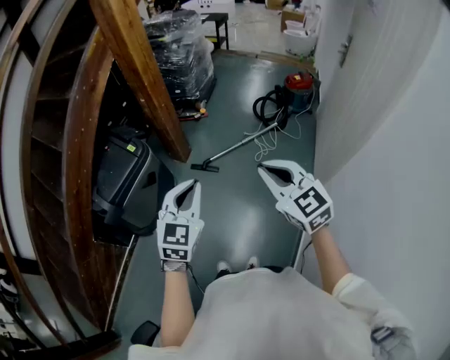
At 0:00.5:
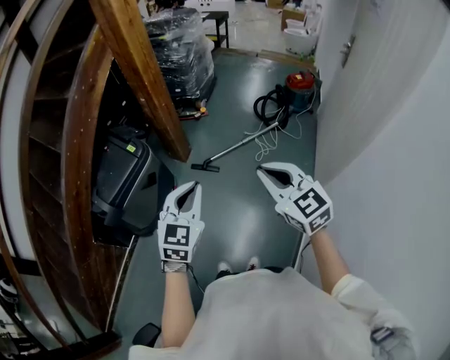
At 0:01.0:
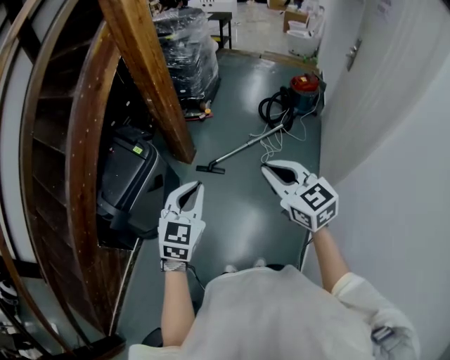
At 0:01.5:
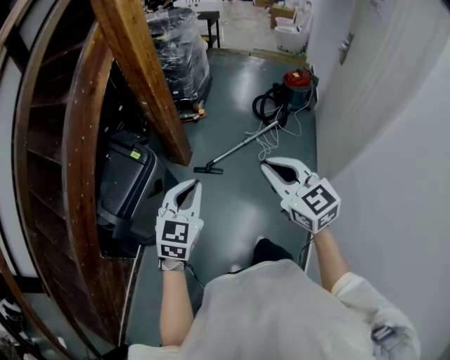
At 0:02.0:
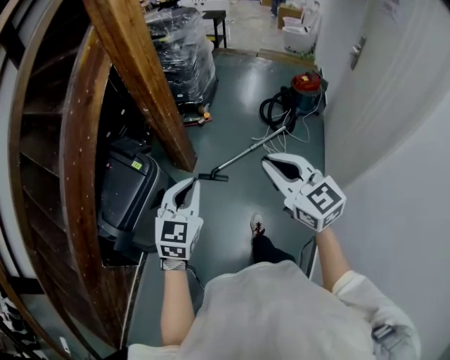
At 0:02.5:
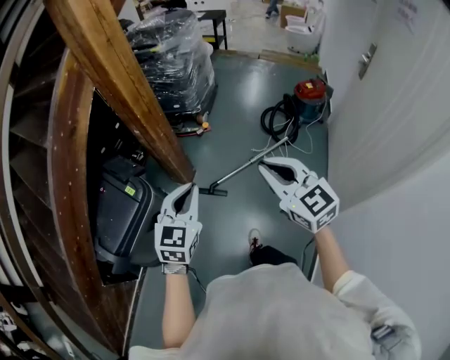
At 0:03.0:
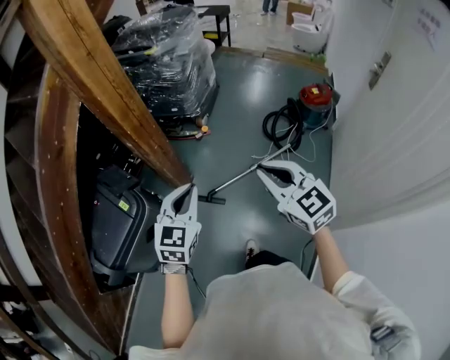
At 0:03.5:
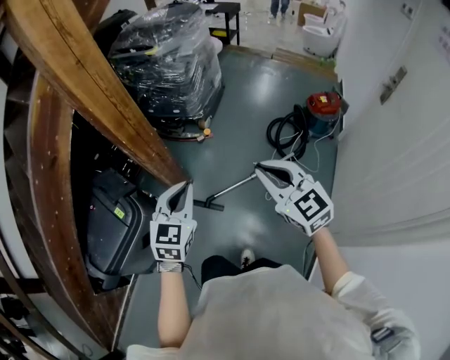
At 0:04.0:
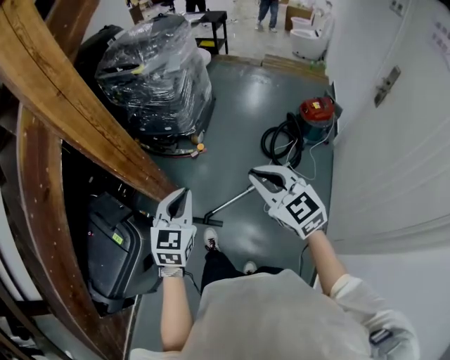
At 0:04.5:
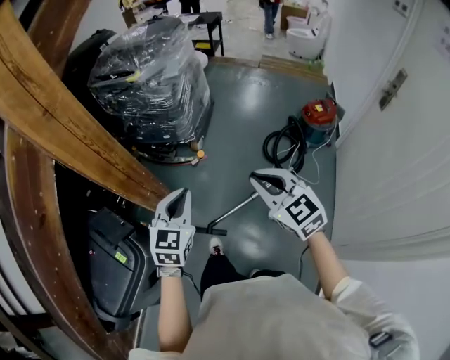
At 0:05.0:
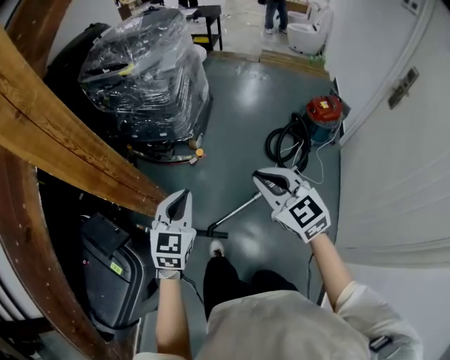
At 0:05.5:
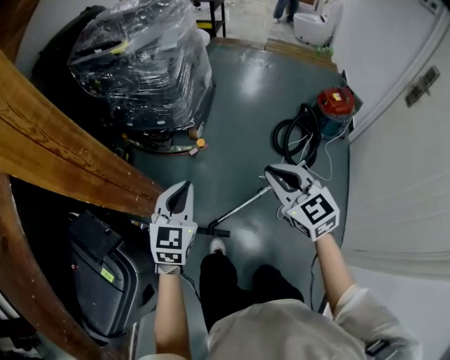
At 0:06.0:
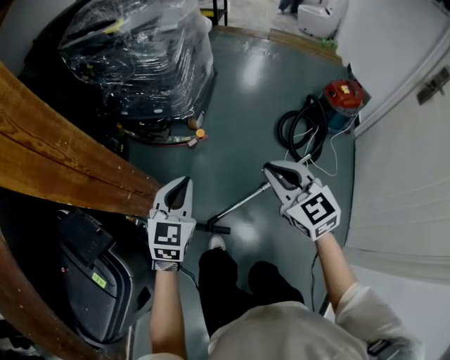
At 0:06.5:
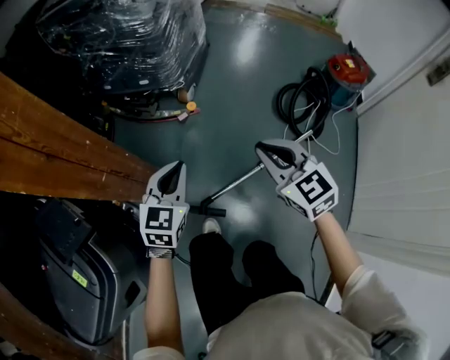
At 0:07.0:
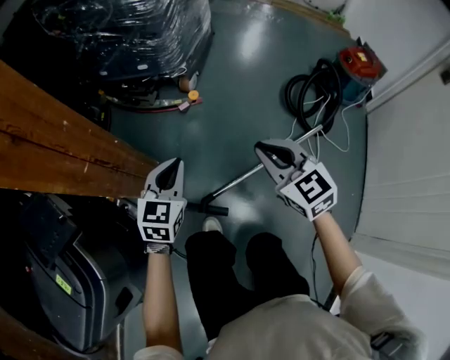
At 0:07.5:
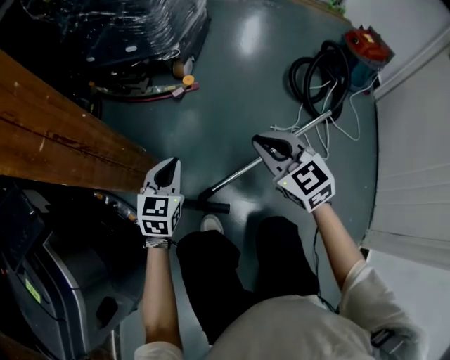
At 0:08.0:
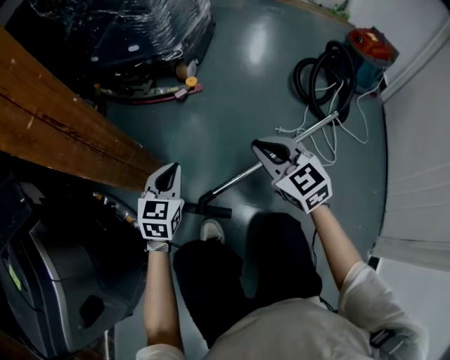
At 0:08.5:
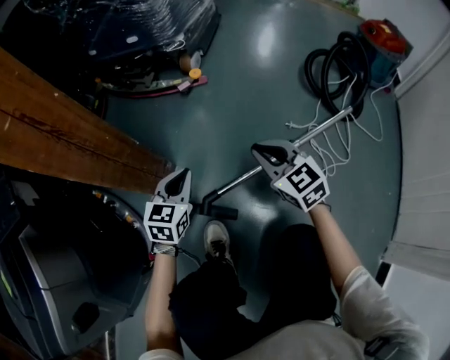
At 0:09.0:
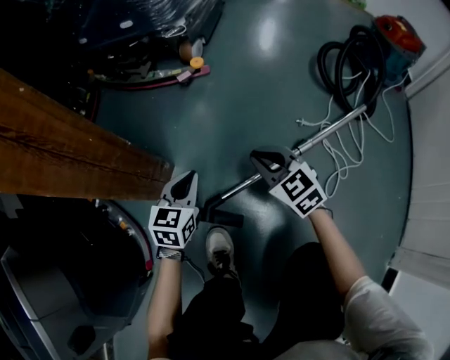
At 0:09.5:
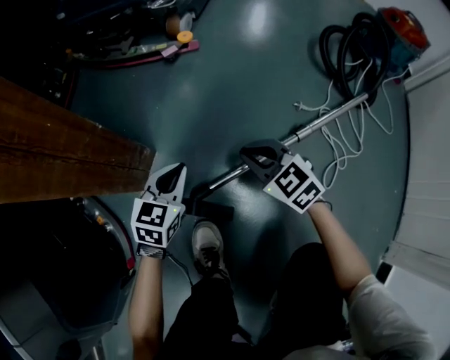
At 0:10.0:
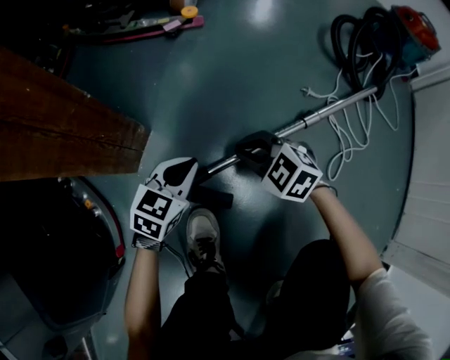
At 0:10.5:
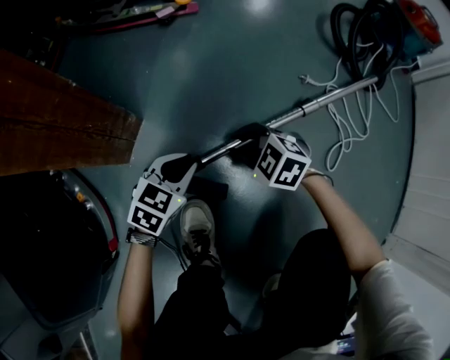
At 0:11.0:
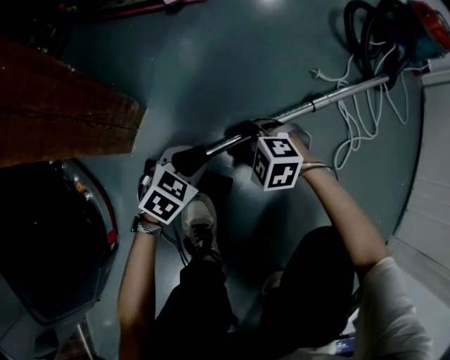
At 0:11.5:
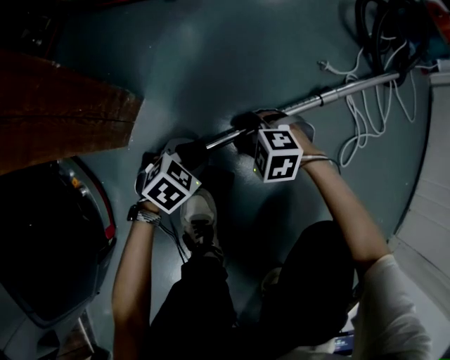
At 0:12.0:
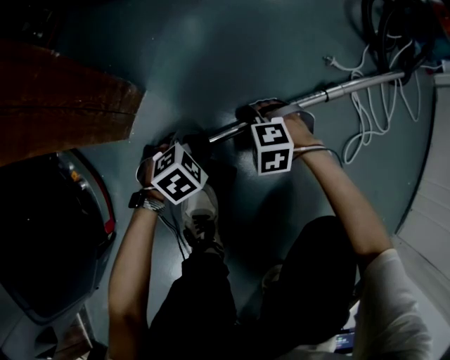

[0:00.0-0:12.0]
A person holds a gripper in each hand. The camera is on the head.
0:00.0 to 0:02.0: Both grippers move forward and to the left, about 15 cm.
0:02.0 to 0:04.0: The two grippers travel together, forward and to the right, about 40 cm.
0:04.0 to 0:06.0: Both grippers move downward and forward, approximately 30 cm.
0:06.0 to 0:08.0: Both grippers travel together downward, some 40 cm.
0:08.0 to 0:10.0: Both grippers travel together downward, roughly 25 cm. The left gripper swivels some 20 degrees, while the right gripper swivels some 40 degrees.
0:10.0 to 0:12.0: Both grippers move downward, roughly 15 cm. The left gripper turns by about 40 degrees, and opens its fingers, while the right gripper rotates approximately 40 degrees, and opens up.

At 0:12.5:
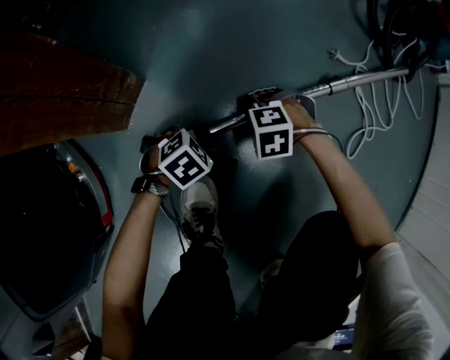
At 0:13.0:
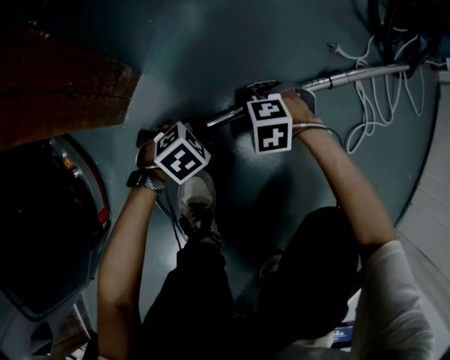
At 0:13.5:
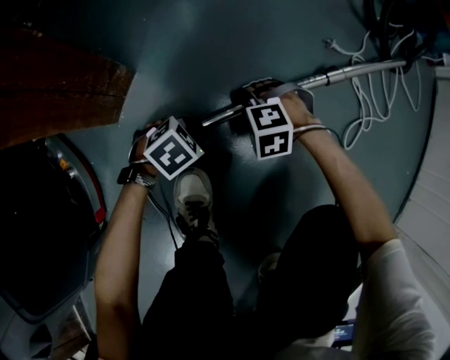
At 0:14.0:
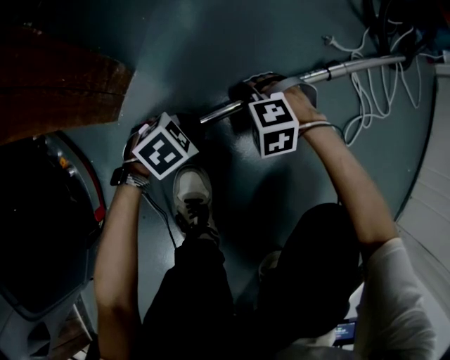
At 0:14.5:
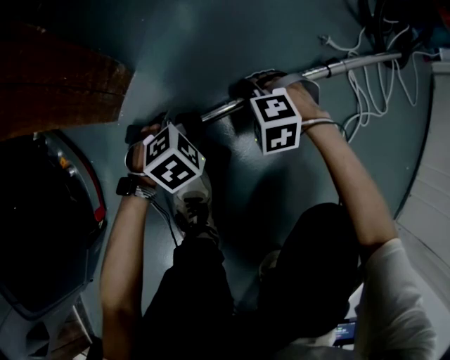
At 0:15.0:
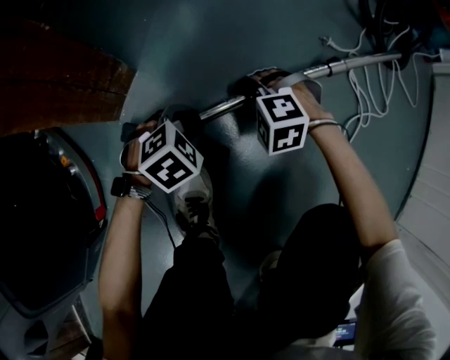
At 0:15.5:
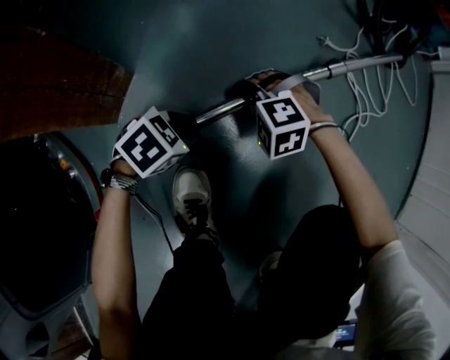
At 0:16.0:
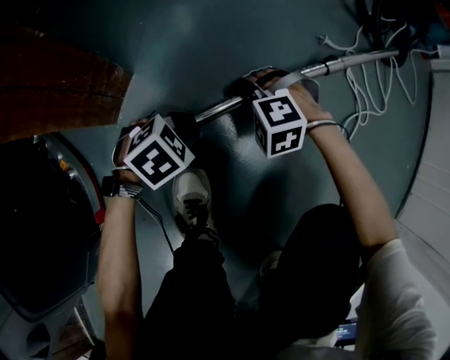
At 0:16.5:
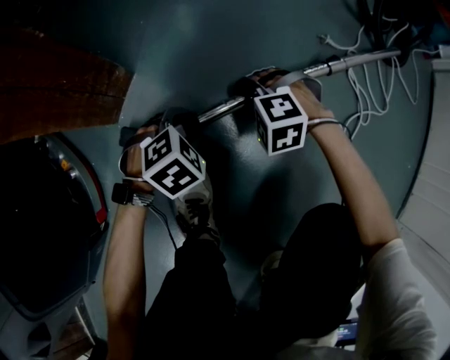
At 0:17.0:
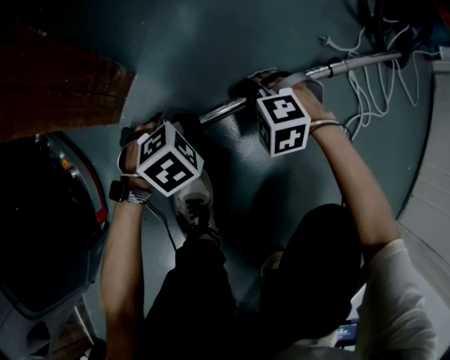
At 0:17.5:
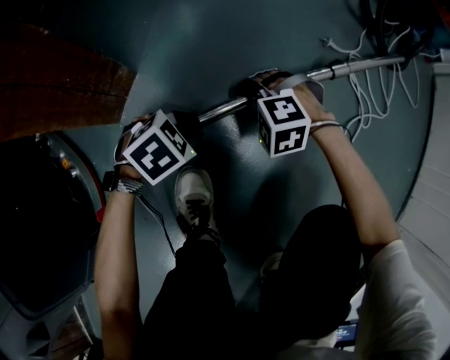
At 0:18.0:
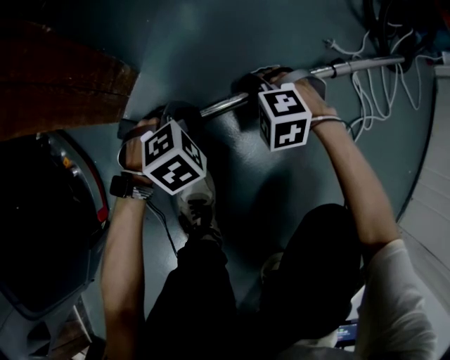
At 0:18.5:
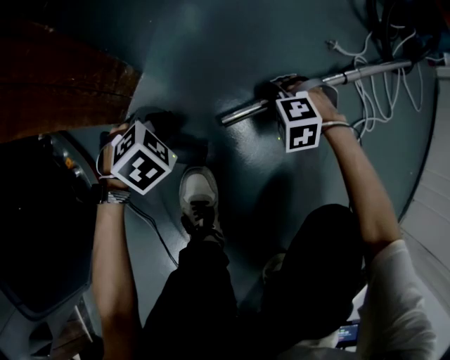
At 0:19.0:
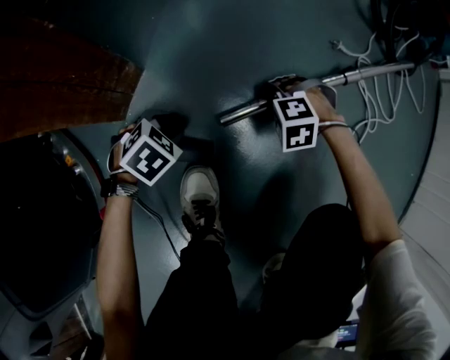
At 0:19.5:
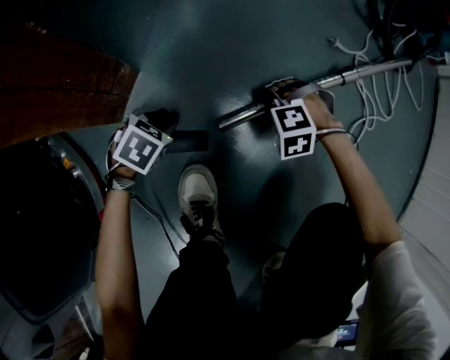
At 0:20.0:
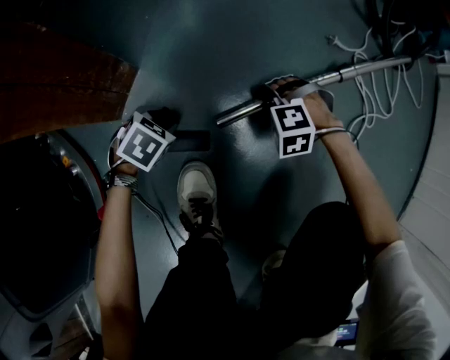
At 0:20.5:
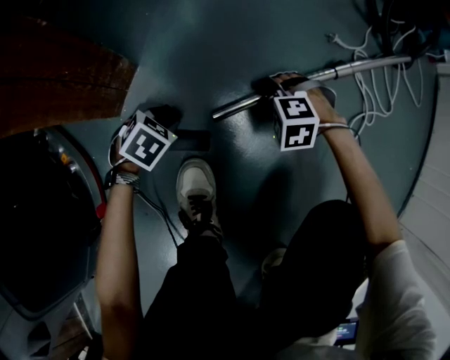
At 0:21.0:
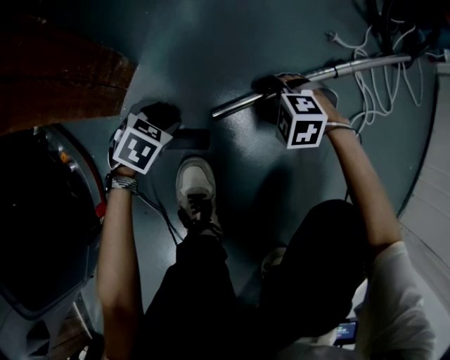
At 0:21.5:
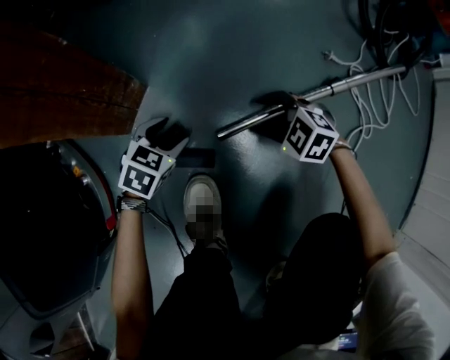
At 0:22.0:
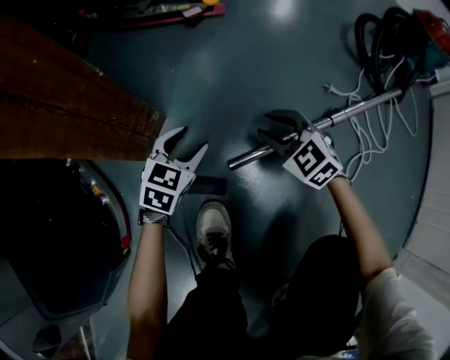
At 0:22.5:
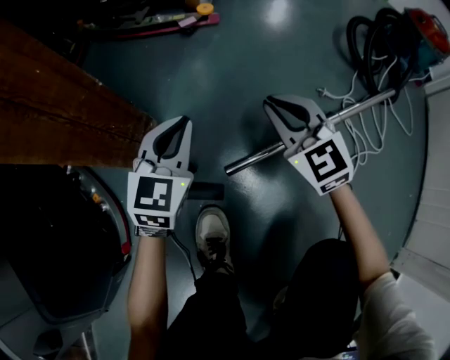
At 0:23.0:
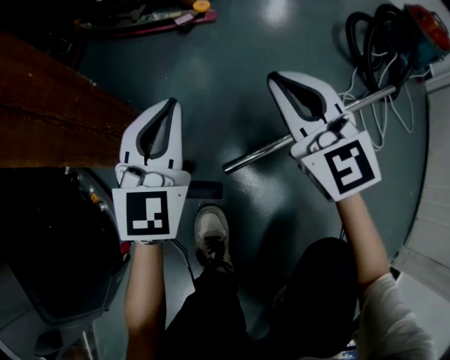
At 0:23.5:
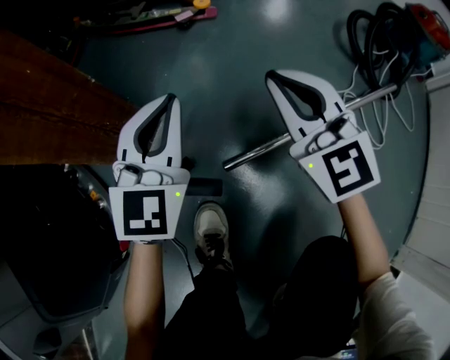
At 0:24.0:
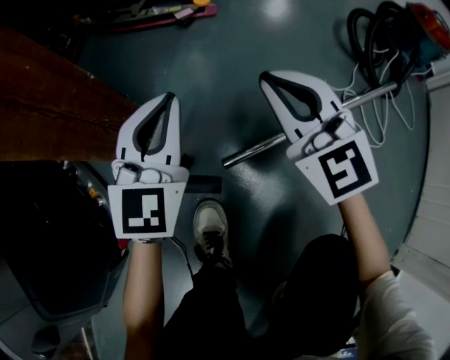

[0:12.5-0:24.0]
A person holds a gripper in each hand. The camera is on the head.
0:12.5 to 0:14.5: The grippers make only small movements.
0:16.5 to 0:18.5: The right gripper moves roughly 5 cm. Meanwhile the left gripper changes place by roughly 5 cm.
0:18.5 to 0:20.0: The left gripper goes approximately 5 cm downward.
0:20.0 to 0:22.0: The grippers both shift upward and forward by some 15 cm. The left gripper points its fingers roughly 30 degrees further upward; the right gripper tilts its fingers approximately 40 degrees upward, and opens, then closes once more.
0:22.0 to 0:24.0: Both grippers move upward, some 20 cm. The right gripper rotates some 30 degrees, and closes up. The left gripper swivels roughly 30 degrees, and closes up.

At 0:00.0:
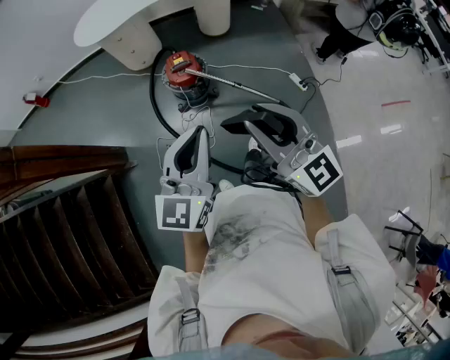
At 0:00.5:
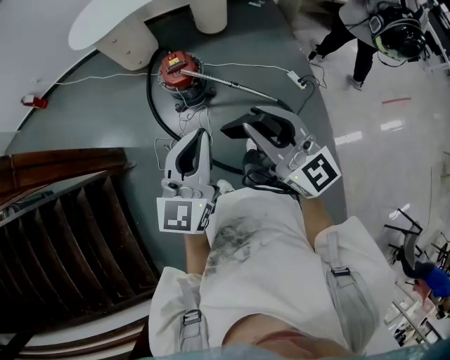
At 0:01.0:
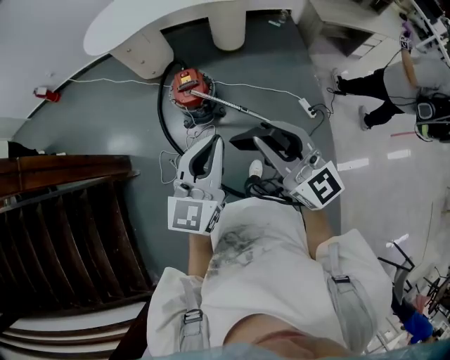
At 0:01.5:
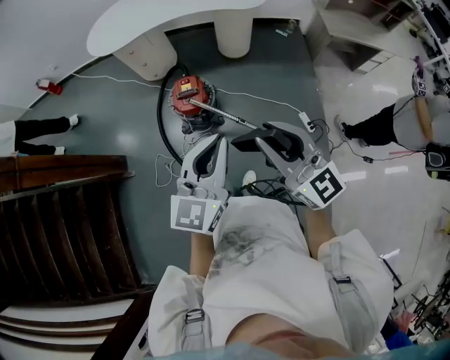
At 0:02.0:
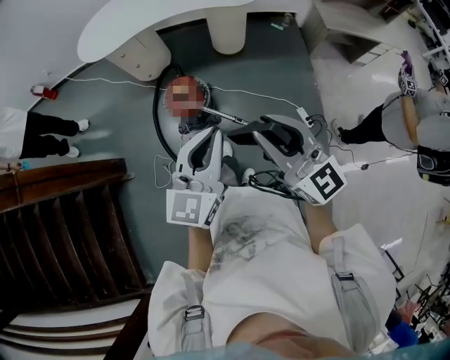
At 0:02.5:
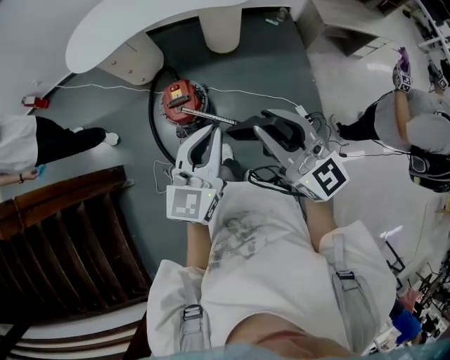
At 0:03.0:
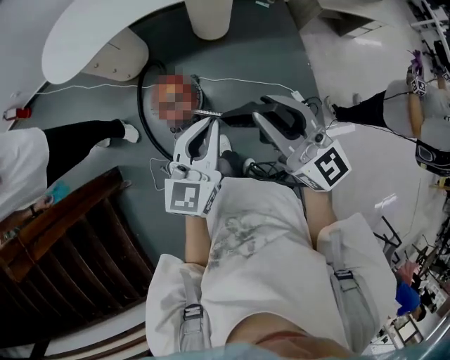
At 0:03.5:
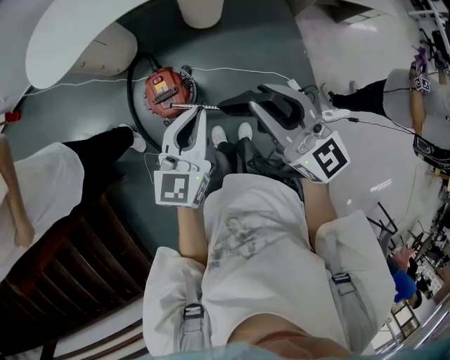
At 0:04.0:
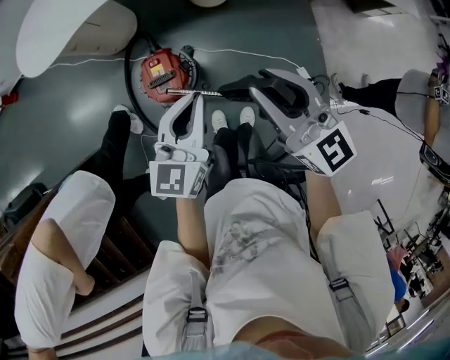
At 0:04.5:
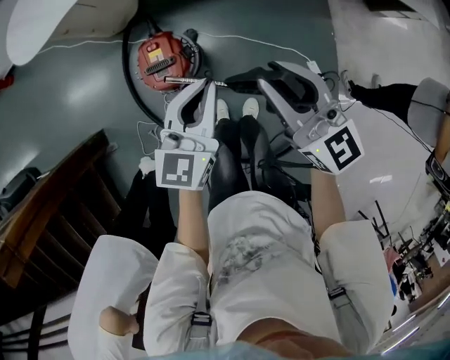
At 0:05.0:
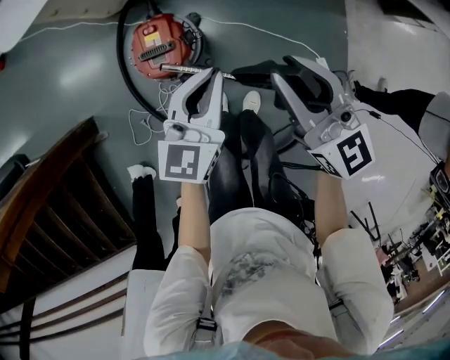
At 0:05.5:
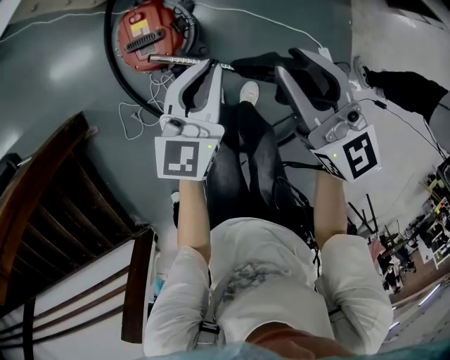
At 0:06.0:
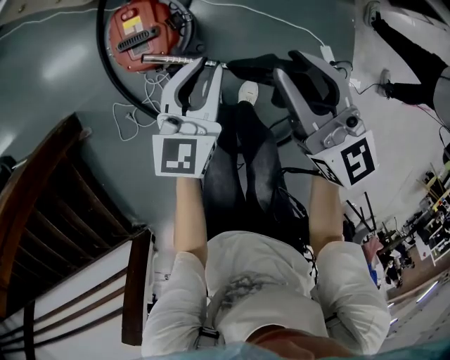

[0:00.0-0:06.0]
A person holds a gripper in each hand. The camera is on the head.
0:00.0 to 0:02.0: The grippers both shift forward and to the right by about 30 cm.
0:02.0 to 0:04.0: Both grippers travel together forward and downward, approximately 35 cm.
0:04.0 to 0:06.0: The two grippers go approximately 30 cm downward.
